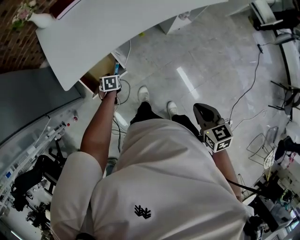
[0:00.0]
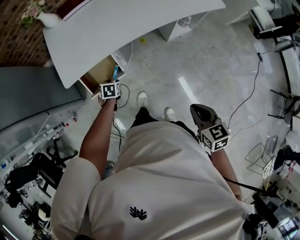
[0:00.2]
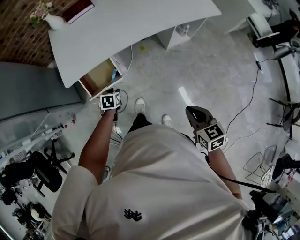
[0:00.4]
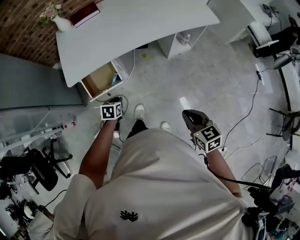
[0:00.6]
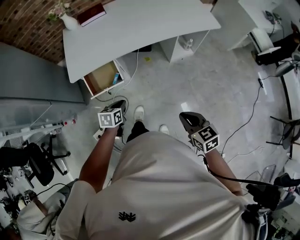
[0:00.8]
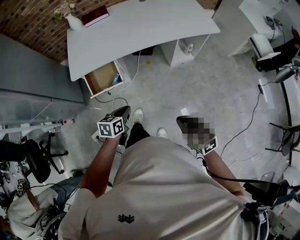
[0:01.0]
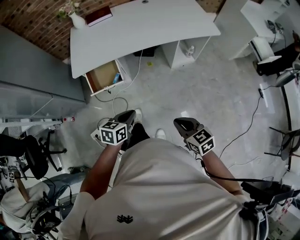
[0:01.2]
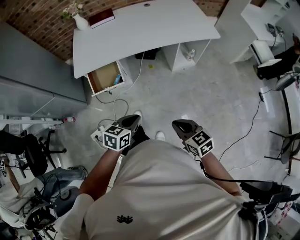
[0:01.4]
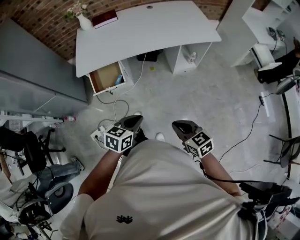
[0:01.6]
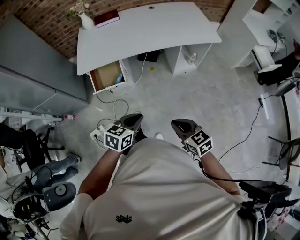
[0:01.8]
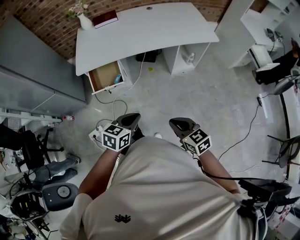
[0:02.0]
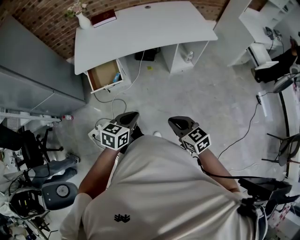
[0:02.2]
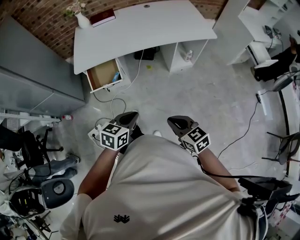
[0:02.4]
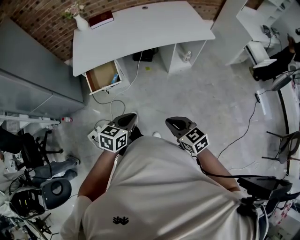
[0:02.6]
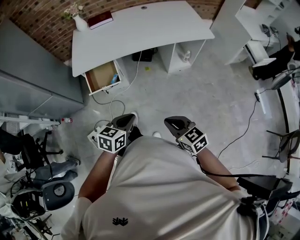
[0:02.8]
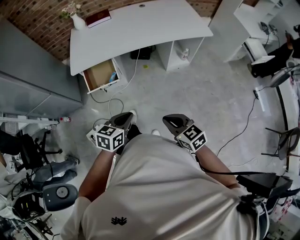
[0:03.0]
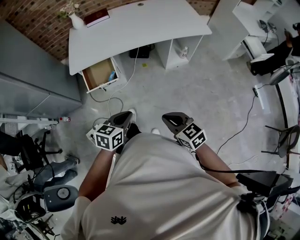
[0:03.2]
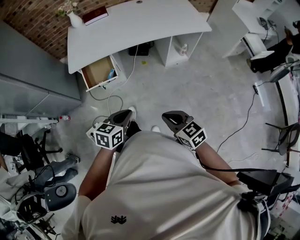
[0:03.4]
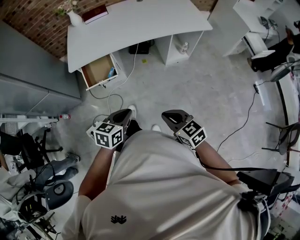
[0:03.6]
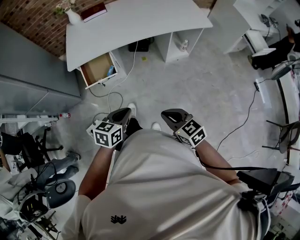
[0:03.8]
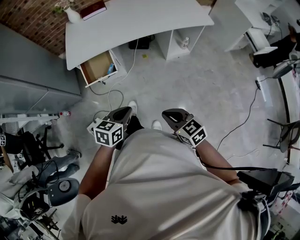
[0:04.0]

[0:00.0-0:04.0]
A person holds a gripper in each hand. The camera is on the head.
0.0 to 1.4 s: The left gripper moves backward, upward and to the right, roughly 50 cm, points its fingers approximately 30 degrees further upward, and closes up. The right gripper goes roughly 20 cm backward and to the right, and turns by approximately 30 degrees.
1.4 to 2.6 s: The left gripper shifts by some 5 cm.
2.6 to 4.0 s: The grippers stay close to where they were, moving slightly.

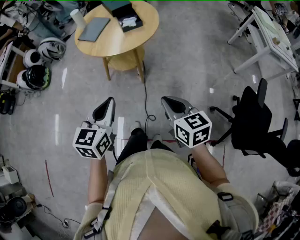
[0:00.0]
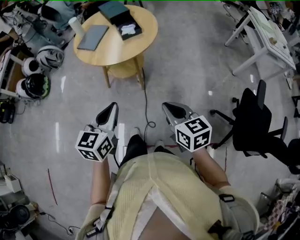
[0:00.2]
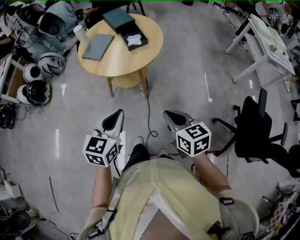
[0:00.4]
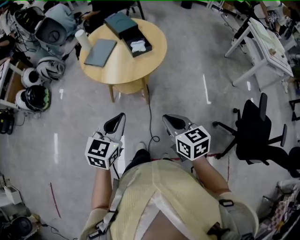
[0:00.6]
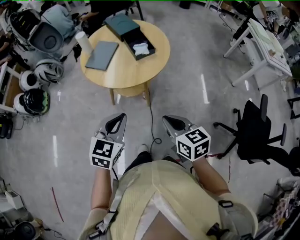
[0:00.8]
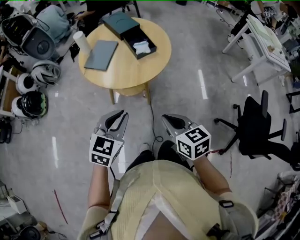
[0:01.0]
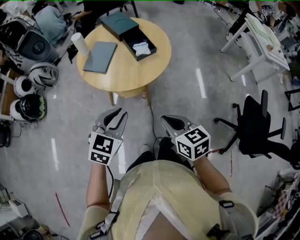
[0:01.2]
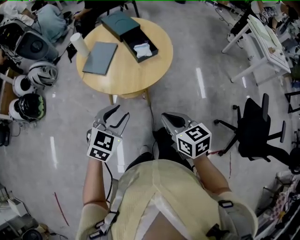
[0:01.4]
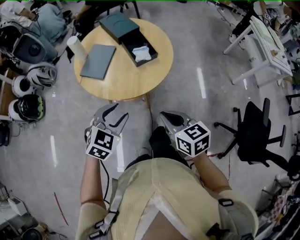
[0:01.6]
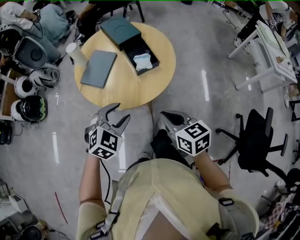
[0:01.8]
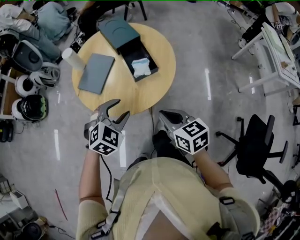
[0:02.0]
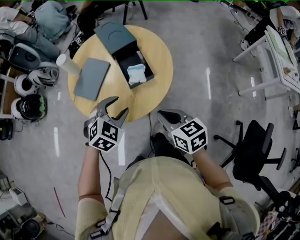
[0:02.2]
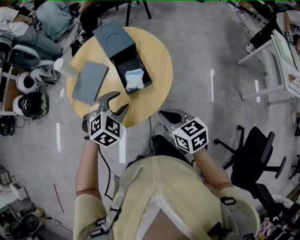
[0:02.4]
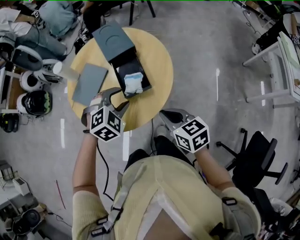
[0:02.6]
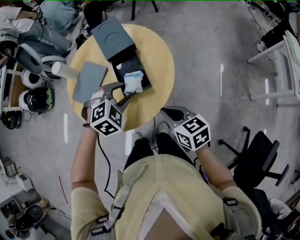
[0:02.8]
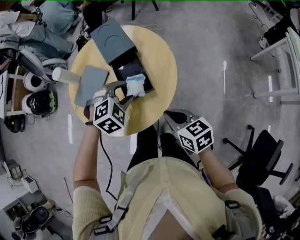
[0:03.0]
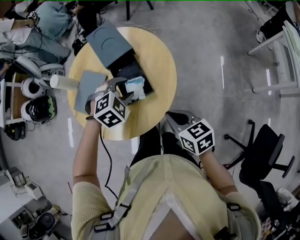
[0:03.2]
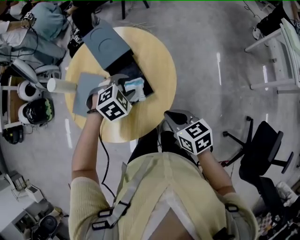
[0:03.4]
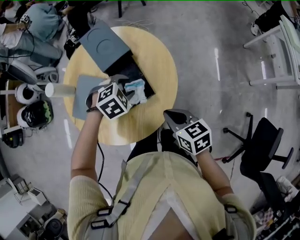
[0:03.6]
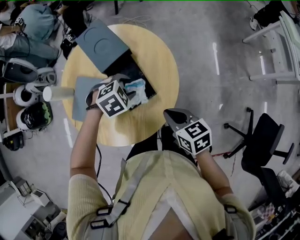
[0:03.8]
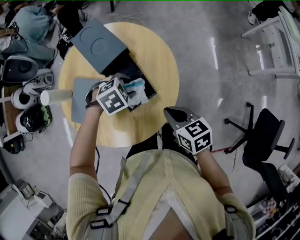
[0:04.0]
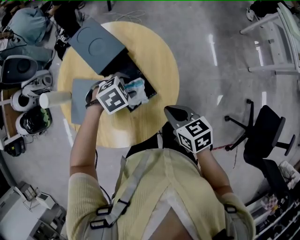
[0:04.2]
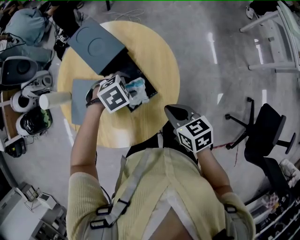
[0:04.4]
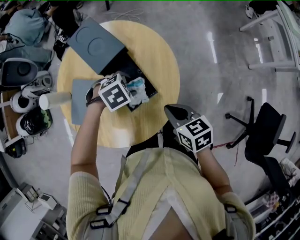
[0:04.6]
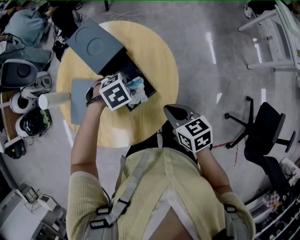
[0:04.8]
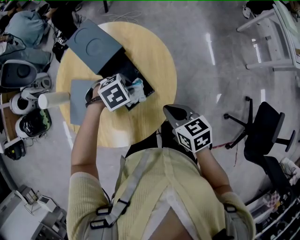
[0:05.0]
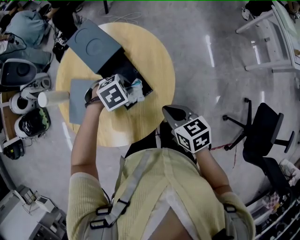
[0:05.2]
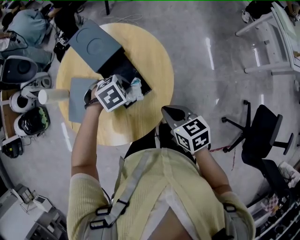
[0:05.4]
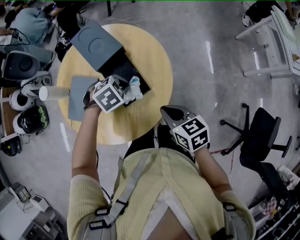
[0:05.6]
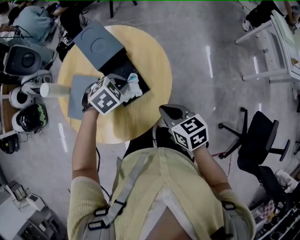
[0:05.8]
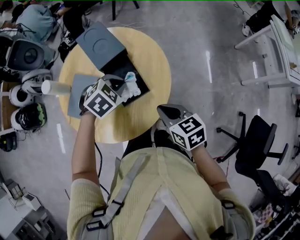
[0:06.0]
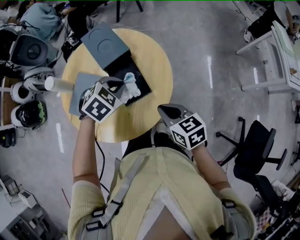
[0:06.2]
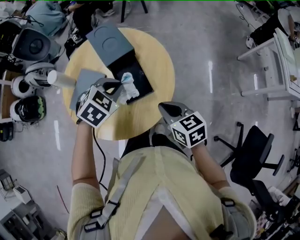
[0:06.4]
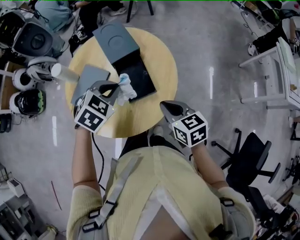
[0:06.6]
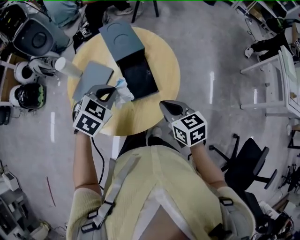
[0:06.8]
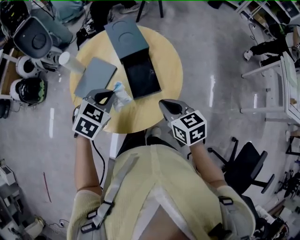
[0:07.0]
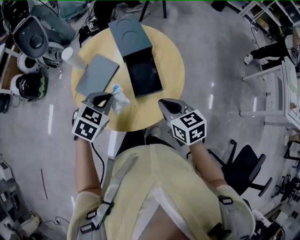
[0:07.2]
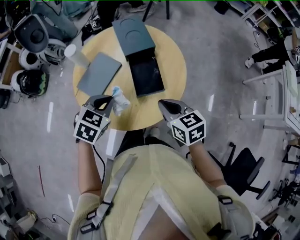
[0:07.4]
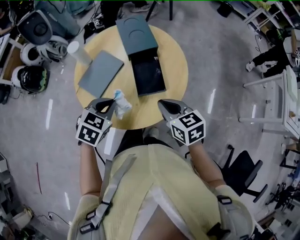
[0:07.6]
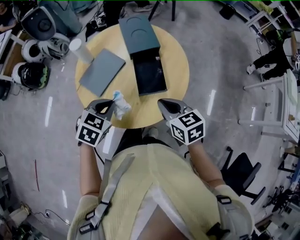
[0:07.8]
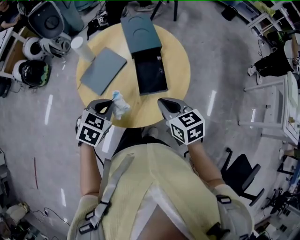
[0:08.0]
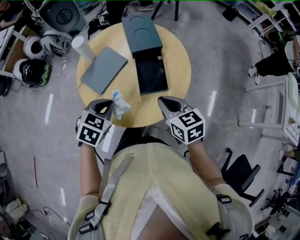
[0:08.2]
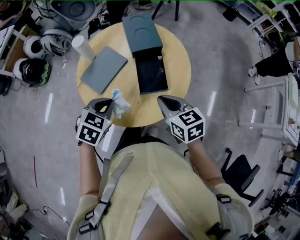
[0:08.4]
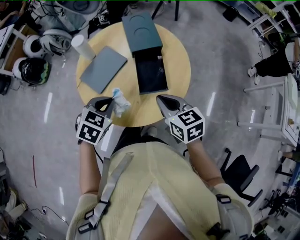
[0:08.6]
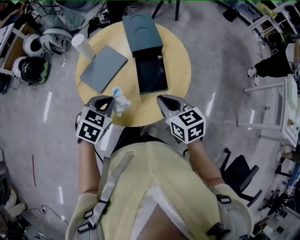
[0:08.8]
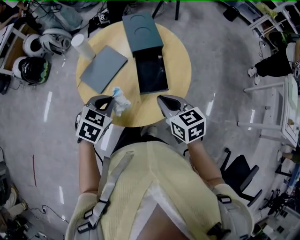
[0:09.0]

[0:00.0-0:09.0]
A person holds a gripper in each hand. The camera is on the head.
0.0 to 1.6 s: The grippers both shift forward and to the left by roughly 25 cm. The left gripper turns by some 40 degrees, and opens.
1.6 to 3.0 s: The grippers both shift forward and to the right by approximately 30 cm. The left gripper rotates about 30 degrees.
3.0 to 4.4 s: The left gripper shifts about 10 cm downward, and turns by roughly 30 degrees. The right gripper ends up about 5 cm from where it was.
4.4 to 6.0 s: The left gripper heads upward, covering about 10 cm, turns by some 20 degrees, and closes.
6.0 to 7.6 s: The right gripper is displaced to the left by some 5 cm; the left gripper moves to the left and backward, roughly 20 cm, and turns by some 40 degrees.
7.6 to 9.0 s: The grippers move only a little.

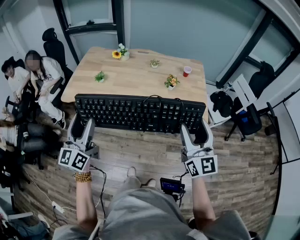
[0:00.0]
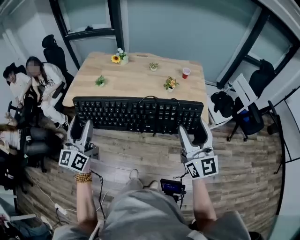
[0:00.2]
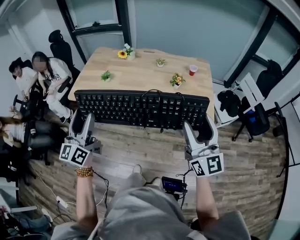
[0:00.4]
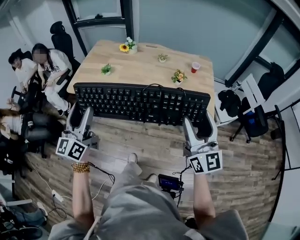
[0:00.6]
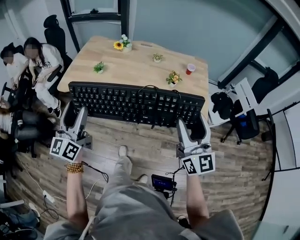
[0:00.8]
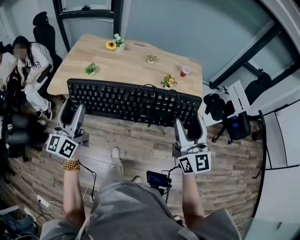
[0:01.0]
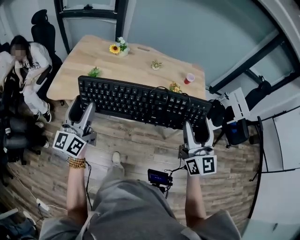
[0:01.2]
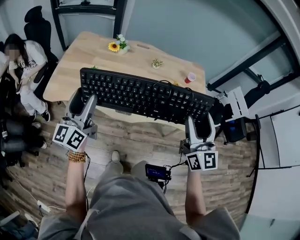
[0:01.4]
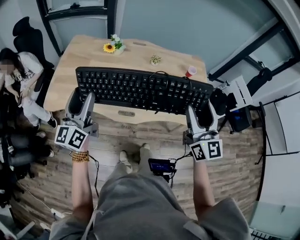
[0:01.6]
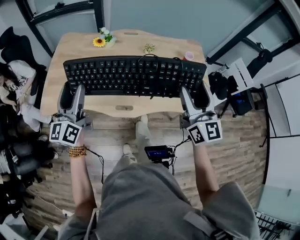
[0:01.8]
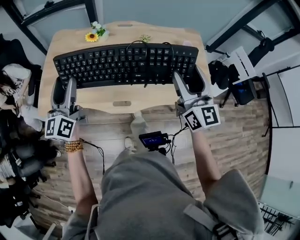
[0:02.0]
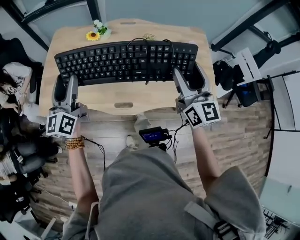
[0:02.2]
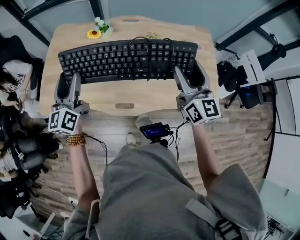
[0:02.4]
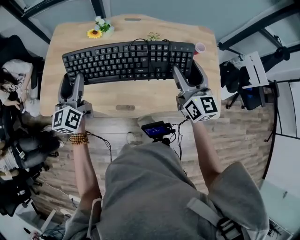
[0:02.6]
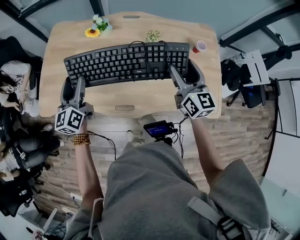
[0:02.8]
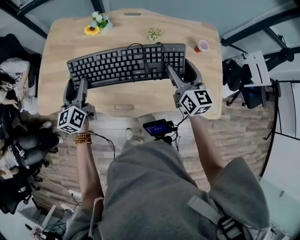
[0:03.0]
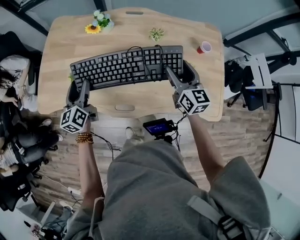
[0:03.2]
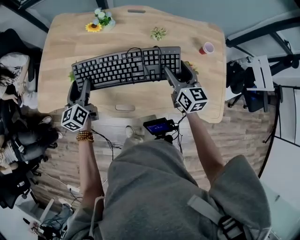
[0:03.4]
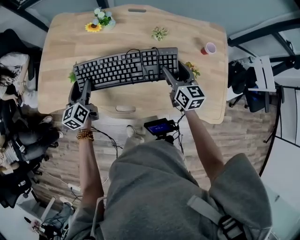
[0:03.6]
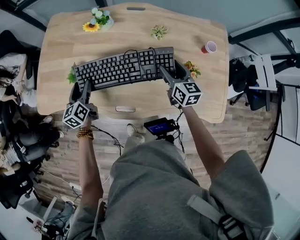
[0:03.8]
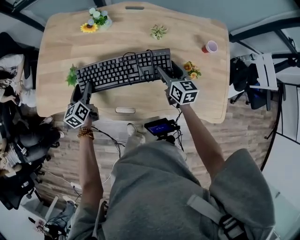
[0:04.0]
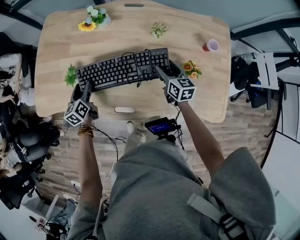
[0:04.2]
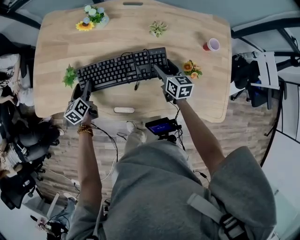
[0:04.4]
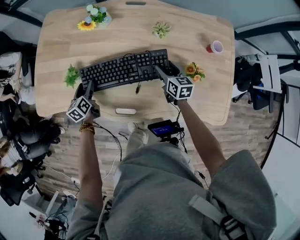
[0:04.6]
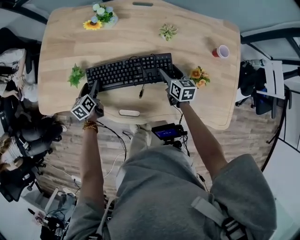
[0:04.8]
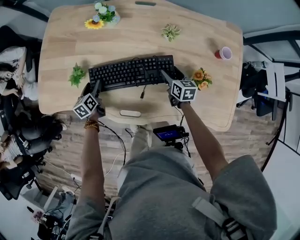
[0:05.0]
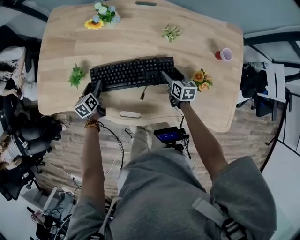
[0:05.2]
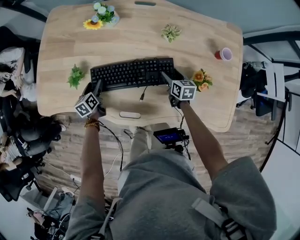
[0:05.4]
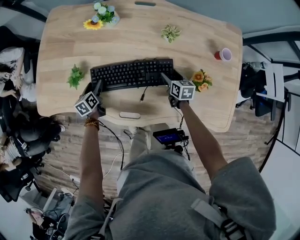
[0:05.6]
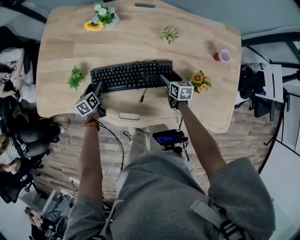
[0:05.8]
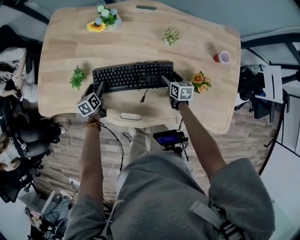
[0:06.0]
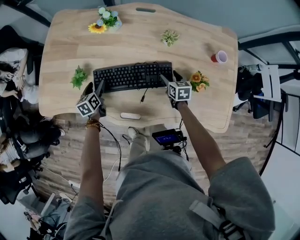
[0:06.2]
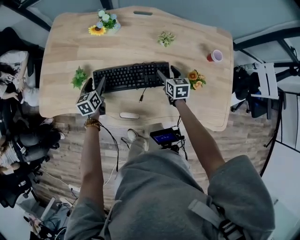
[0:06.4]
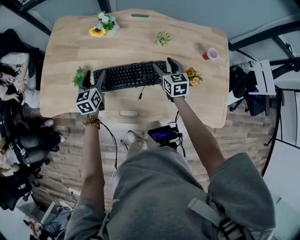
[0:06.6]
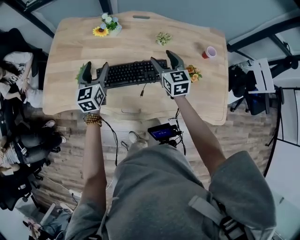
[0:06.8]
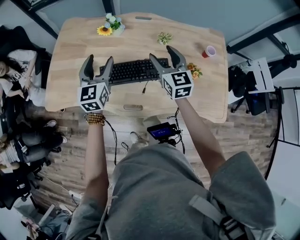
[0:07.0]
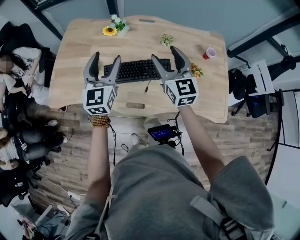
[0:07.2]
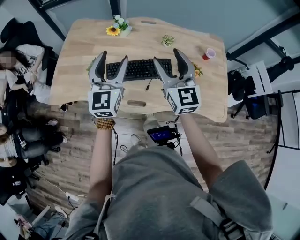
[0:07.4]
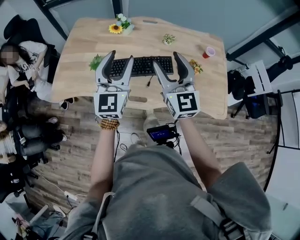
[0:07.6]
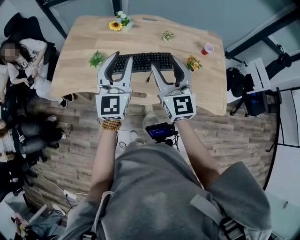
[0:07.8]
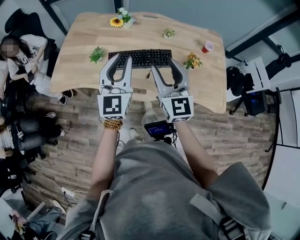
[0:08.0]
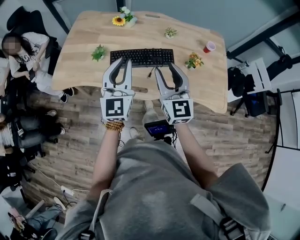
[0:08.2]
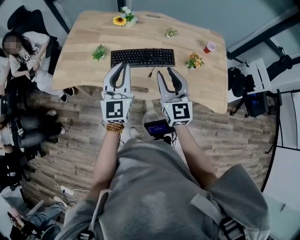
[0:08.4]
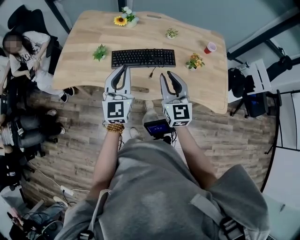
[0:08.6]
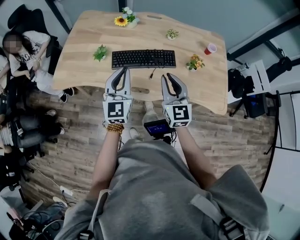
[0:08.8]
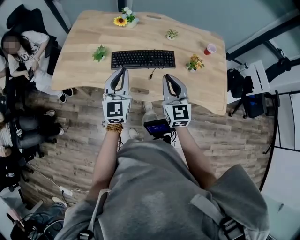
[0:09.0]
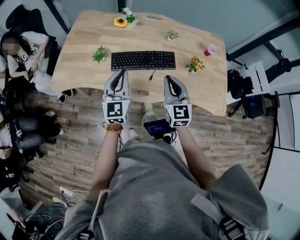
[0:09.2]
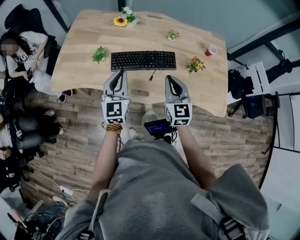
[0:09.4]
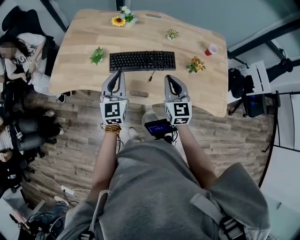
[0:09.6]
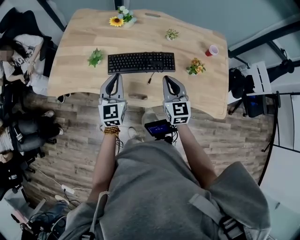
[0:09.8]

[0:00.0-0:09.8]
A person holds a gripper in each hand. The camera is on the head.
0.0 to 1.4 s: Both grippers travel together forward, about 25 cm.
1.4 to 2.8 s: Both grippers travel together forward and downward, roughly 25 cm.
2.8 to 4.2 s: The left gripper is displaced downward by approximately 20 cm, and changes its angle by roughly 30 degrees, while the right gripper is displaced downward and forward by some 25 cm, and turns by about 30 degrees.
4.2 to 5.6 s: Both grippers travel together downward, approximately 10 cm.
5.6 to 7.0 s: The two grippers go some 30 cm upward. The left gripper tilts its fingers approximately 30 degrees upward. The right gripper points its fingers some 30 degrees further upward.
7.0 to 8.4 s: The two grippers go some 20 cm backward. The right gripper closes. Meanwhile the left gripper closes its fingers.
8.4 to 9.8 s: The grippers both shift downward and forward by approximately 10 cm. The right gripper closes.

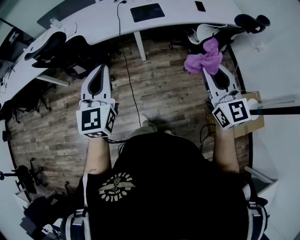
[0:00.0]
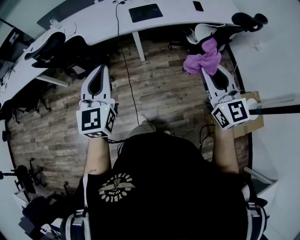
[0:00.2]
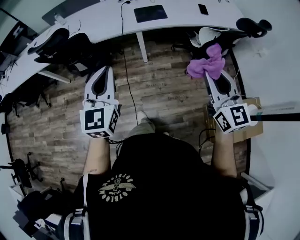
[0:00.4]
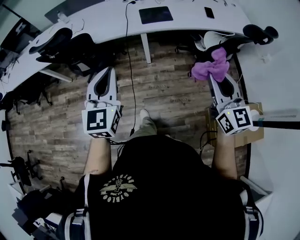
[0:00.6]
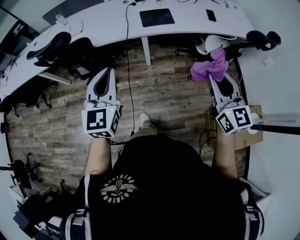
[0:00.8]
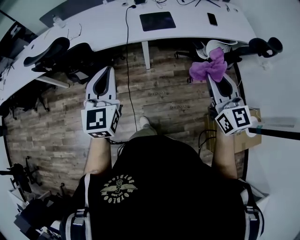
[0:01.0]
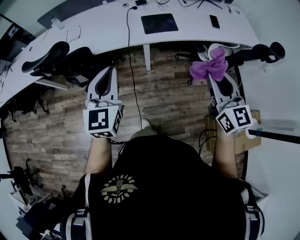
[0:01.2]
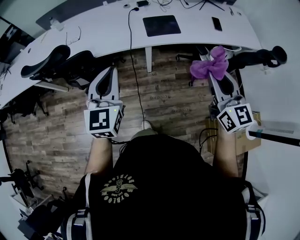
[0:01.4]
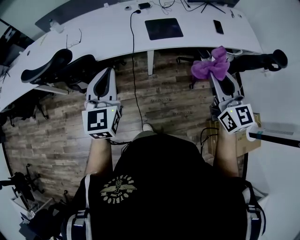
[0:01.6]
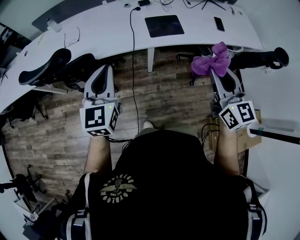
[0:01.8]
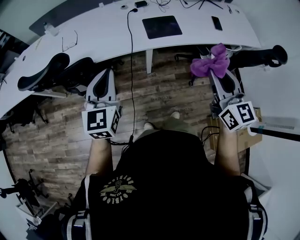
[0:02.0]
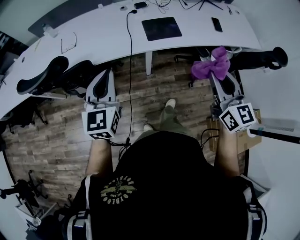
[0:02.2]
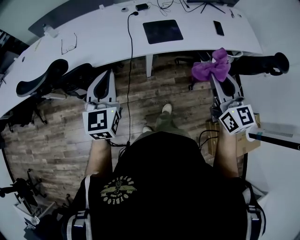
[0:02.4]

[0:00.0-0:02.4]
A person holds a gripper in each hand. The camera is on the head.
0.0 to 1.2 s: The grippers both shift forward by roughly 15 cm.
1.2 to 2.4 s: The right gripper shifts approximately 10 cm forward, while the left gripper goes roughly 15 cm forward and to the left.
